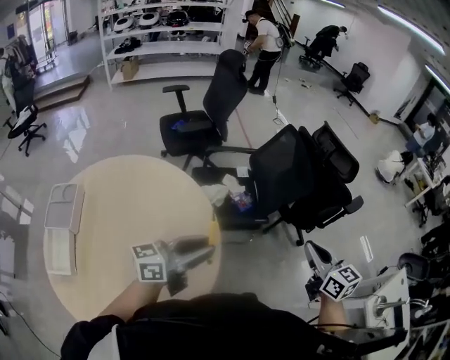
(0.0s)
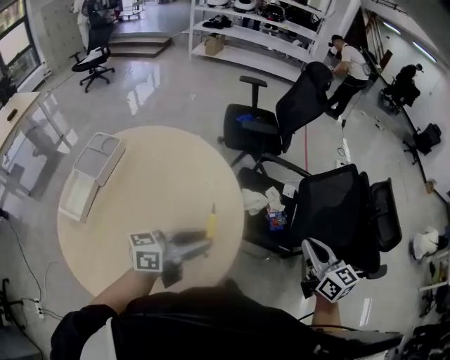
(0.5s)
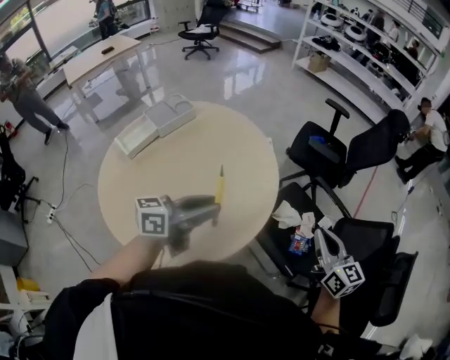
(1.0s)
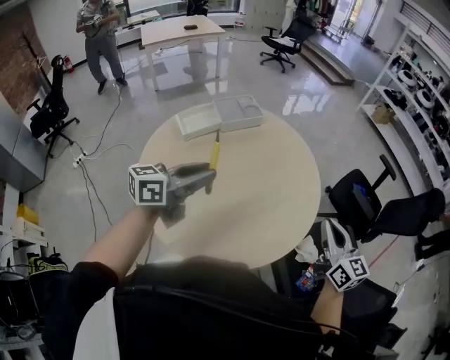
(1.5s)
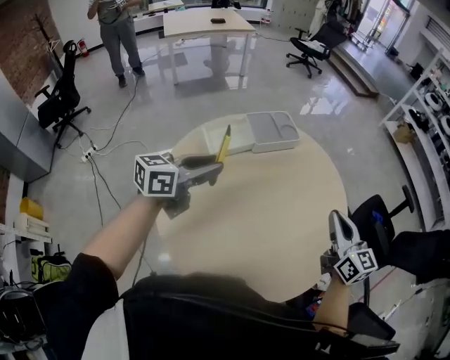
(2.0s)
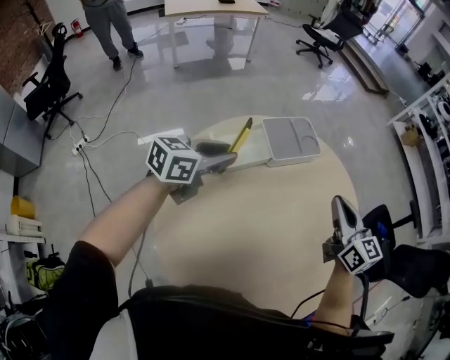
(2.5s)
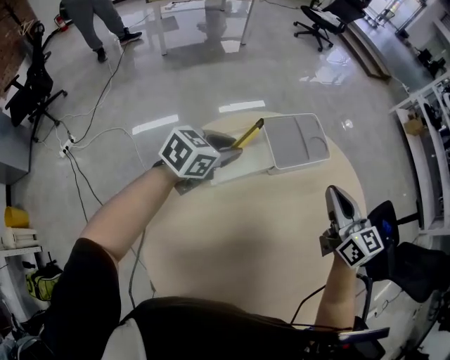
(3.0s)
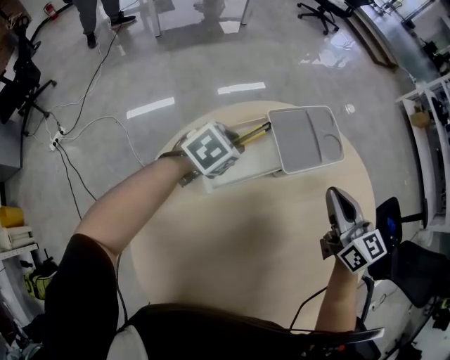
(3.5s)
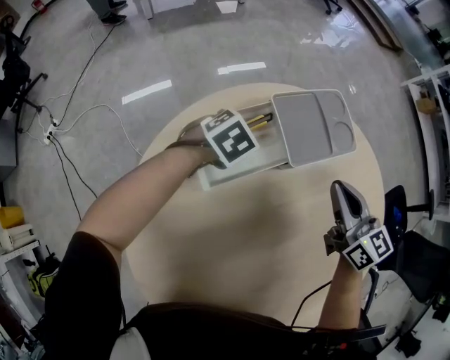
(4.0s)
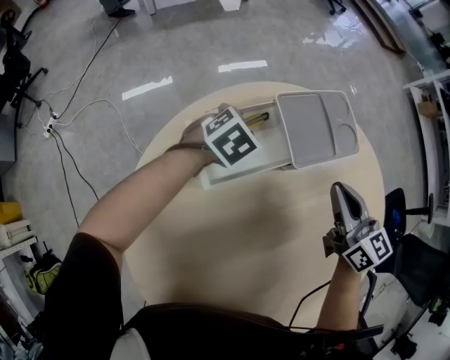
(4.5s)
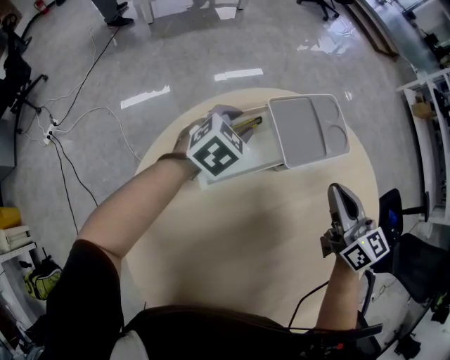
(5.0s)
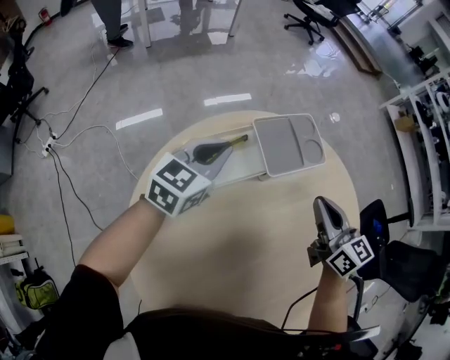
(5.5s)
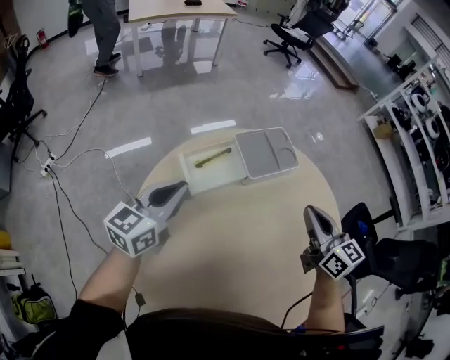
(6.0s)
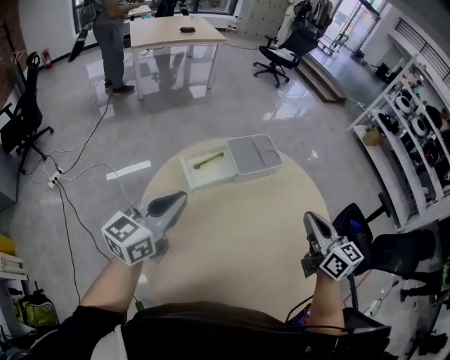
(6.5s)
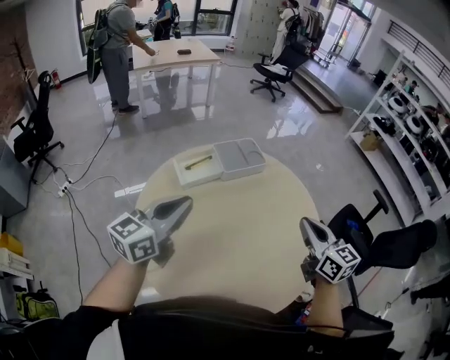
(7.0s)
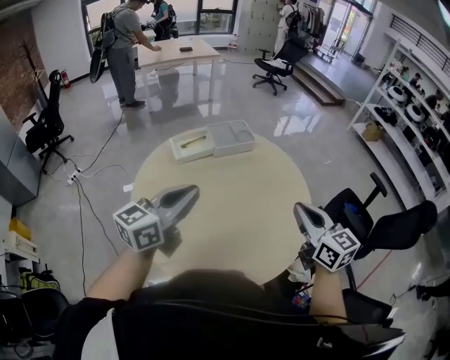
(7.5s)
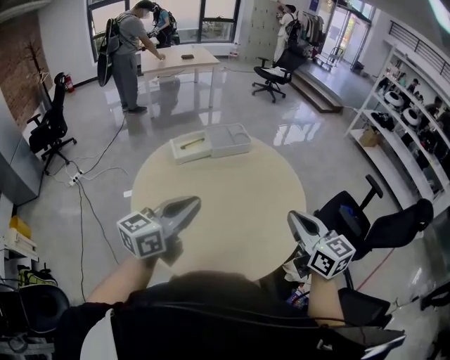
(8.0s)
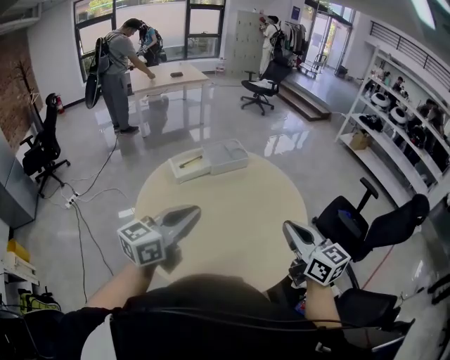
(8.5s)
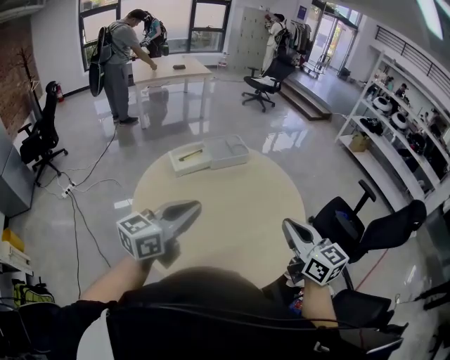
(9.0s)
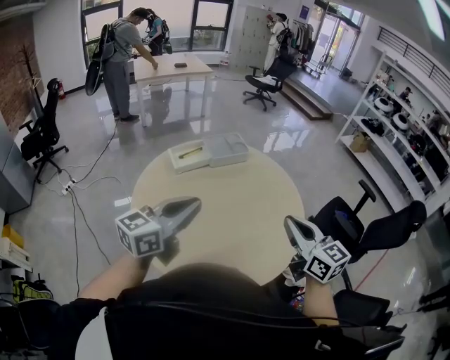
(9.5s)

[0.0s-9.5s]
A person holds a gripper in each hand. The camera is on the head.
0.0s to 2.0s: The two grippers travel together, about 50 cm. The right gripper rotates roughly 80 degrees. Meanwhile the left gripper changes its angle by approximately 90 degrees.
2.0s to 4.0s: The right gripper heads forward, downward and to the left, covering about 40 cm; the left gripper travels downward and forward by some 50 cm, and points its fingers some 50 degrees further downward.
4.0s to 5.5s: The right gripper heads upward, covering about 5 cm. Meanwhile the left gripper shifts approximately 20 cm upward, points its fingers roughly 40 degrees further upward, and closes.
5.5s to 7.5s: The two grippers travel together, backward and to the right, some 50 cm. The two grippers go some 25 cm upward. The left gripper swivels roughly 20 degrees.
7.5s to 9.5s: The grippers both shift backward by approximately 5 cm.

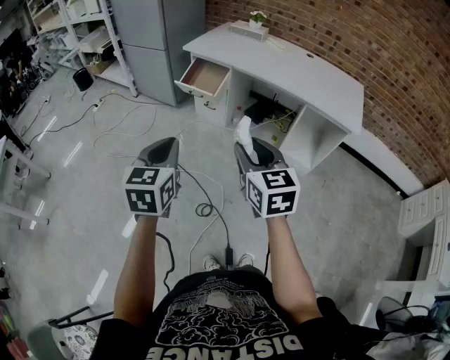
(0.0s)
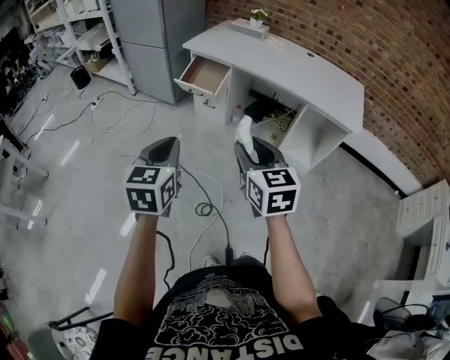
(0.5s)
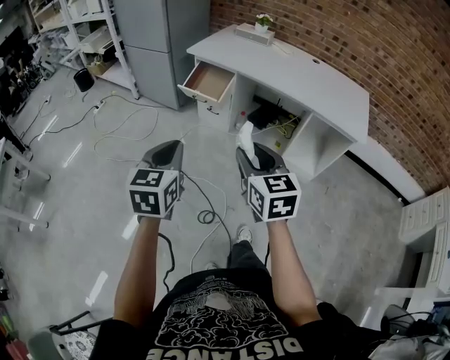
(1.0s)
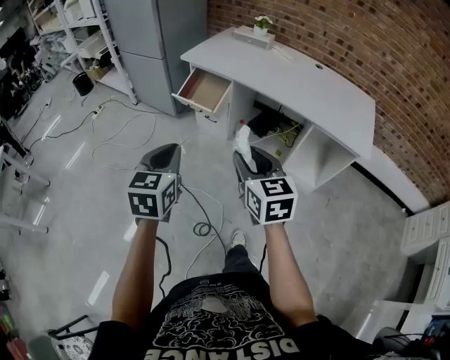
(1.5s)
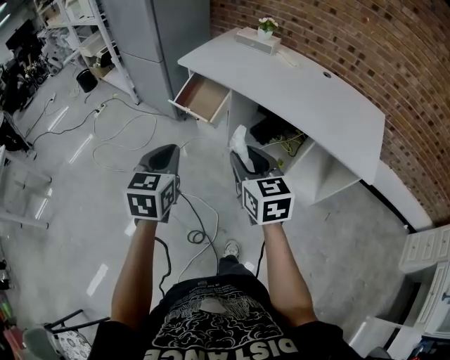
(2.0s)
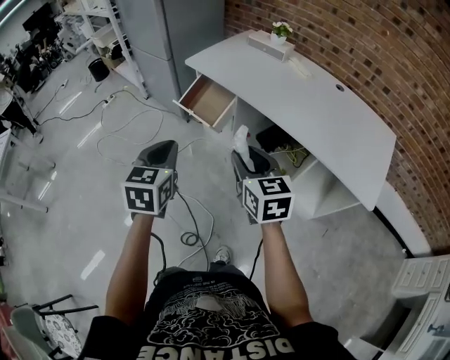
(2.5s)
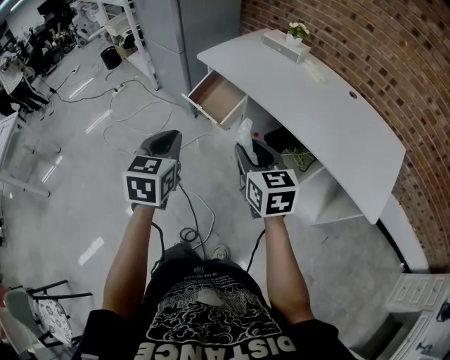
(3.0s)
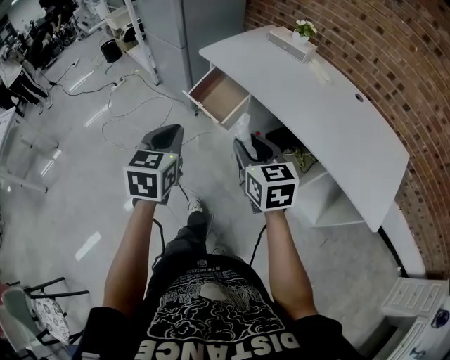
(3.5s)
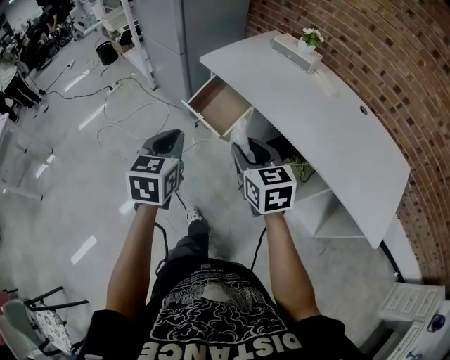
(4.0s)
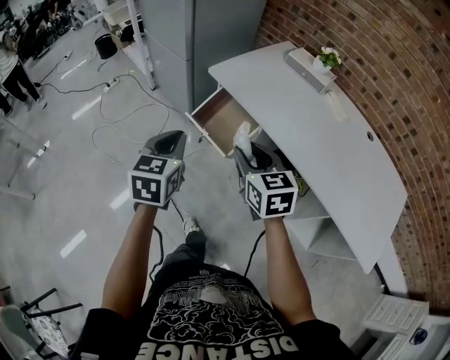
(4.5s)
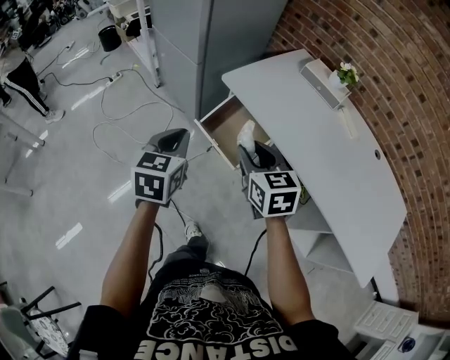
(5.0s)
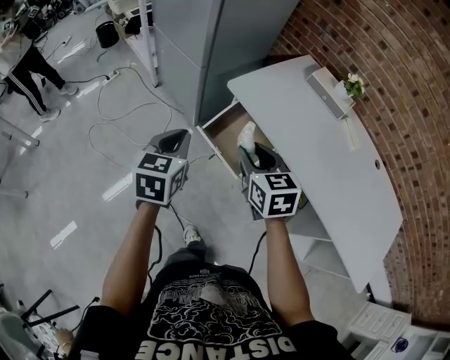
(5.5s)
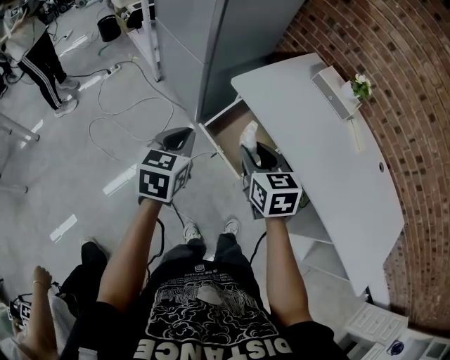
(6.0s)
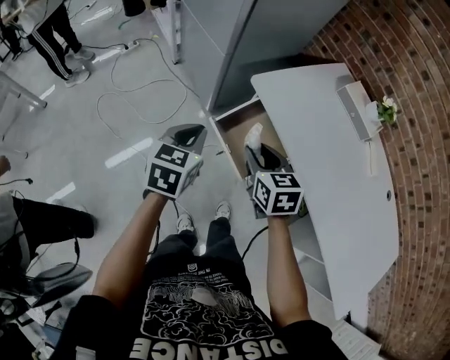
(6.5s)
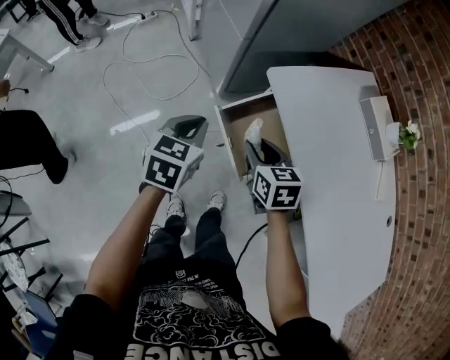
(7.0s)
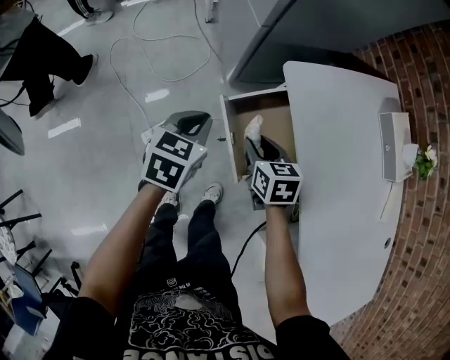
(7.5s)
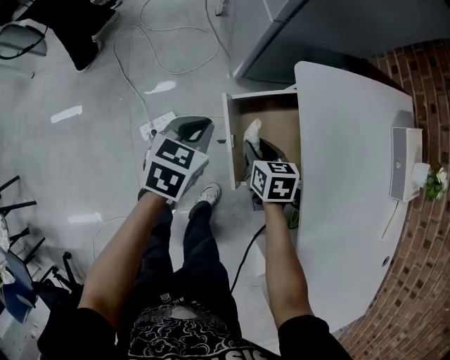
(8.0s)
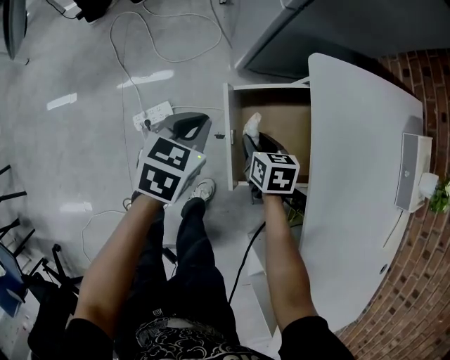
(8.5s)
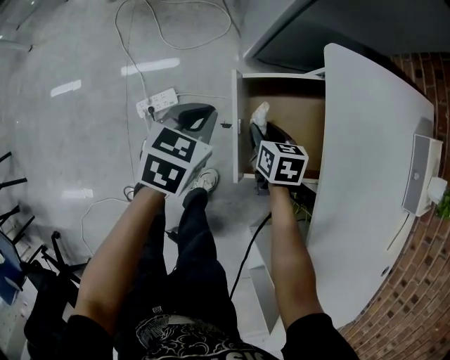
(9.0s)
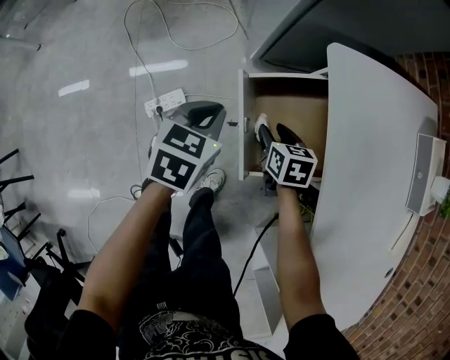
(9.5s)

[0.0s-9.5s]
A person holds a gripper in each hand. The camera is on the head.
0.0s to 2.0s: Both grippers travel together forward, approximately 20 cm.
2.0s to 4.0s: Both grippers move forward, about 15 cm.
4.0s to 5.5s: Both grippers travel together forward and to the left, approximately 25 cm.
5.5s to 7.5s: The left gripper is displaced downward by some 15 cm. Meanwhile the right gripper shifts some 25 cm downward and forward, and rotates about 30 degrees.
7.5s to 9.5s: The left gripper moves downward, approximately 10 cm. The right gripper moves downward, roughly 15 cm.

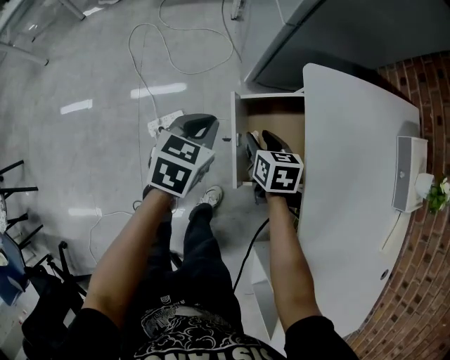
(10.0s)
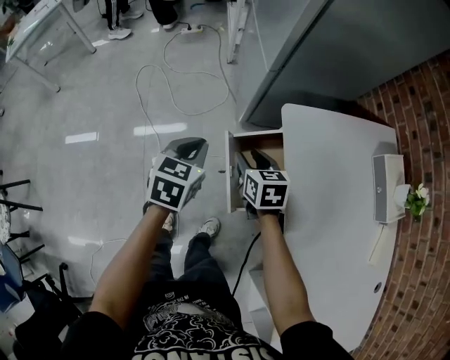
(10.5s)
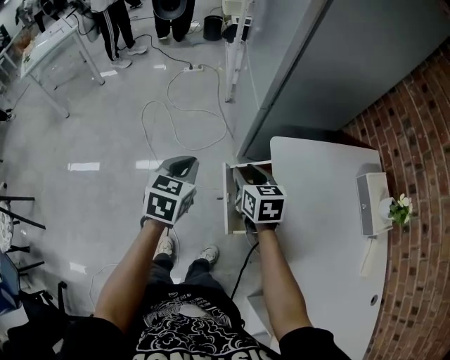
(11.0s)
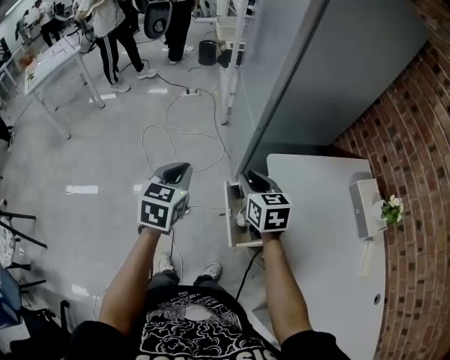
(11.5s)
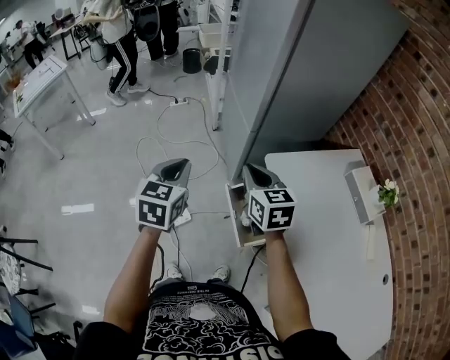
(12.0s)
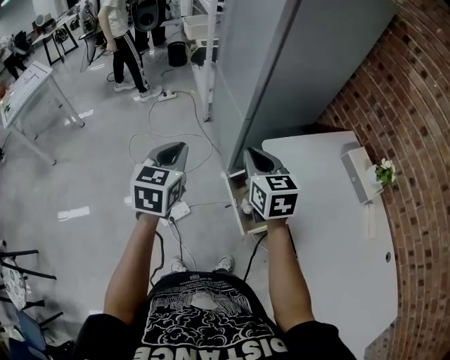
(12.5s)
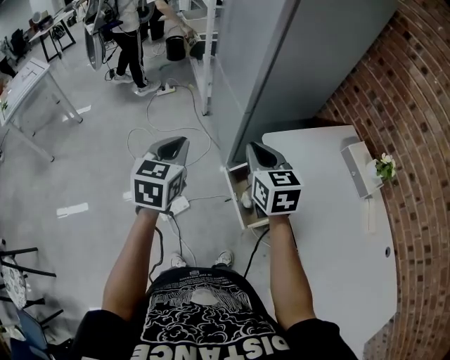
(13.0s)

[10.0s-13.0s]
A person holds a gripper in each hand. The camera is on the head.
10.0s to 11.5s: The left gripper heads upward and to the left, covering approximately 20 cm. The right gripper is displaced upward by approximately 25 cm, turns by approximately 20 degrees, and closes its fingers.
11.5s to 13.0s: The grippers both shift upward by roughly 10 cm. The right gripper closes its fingers.

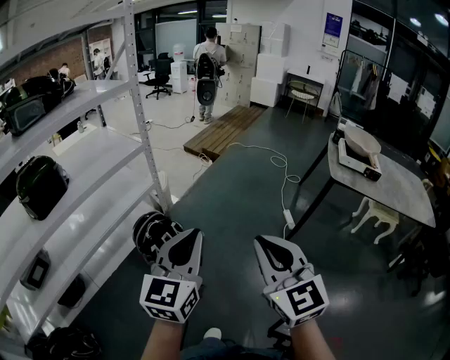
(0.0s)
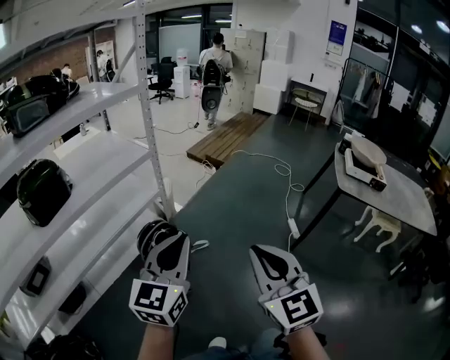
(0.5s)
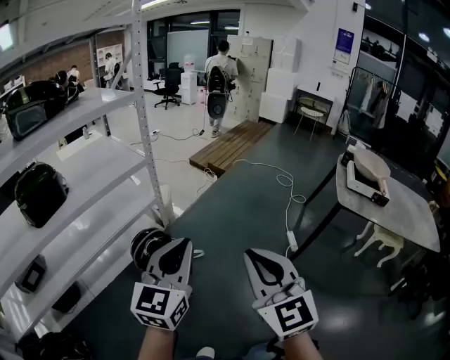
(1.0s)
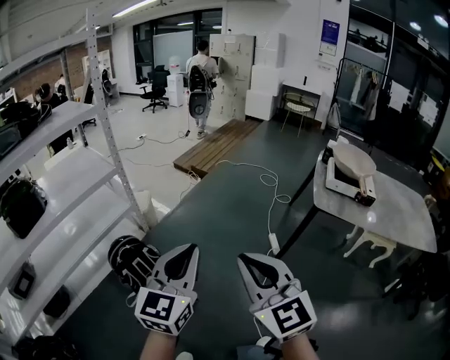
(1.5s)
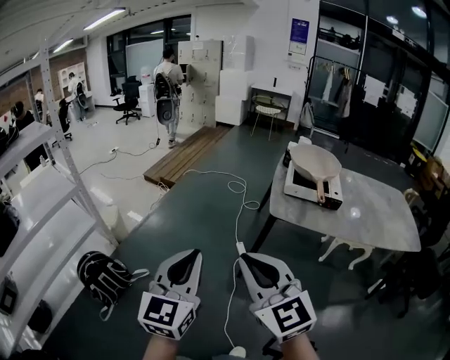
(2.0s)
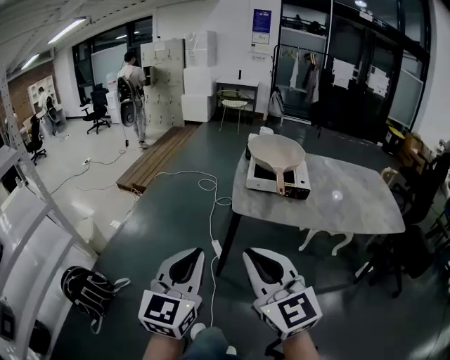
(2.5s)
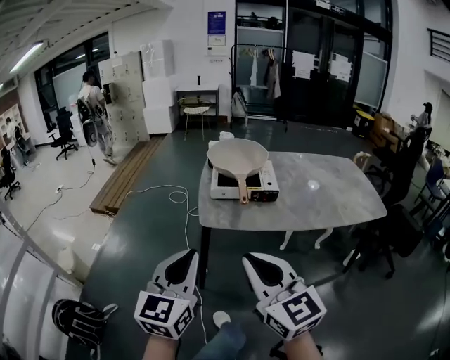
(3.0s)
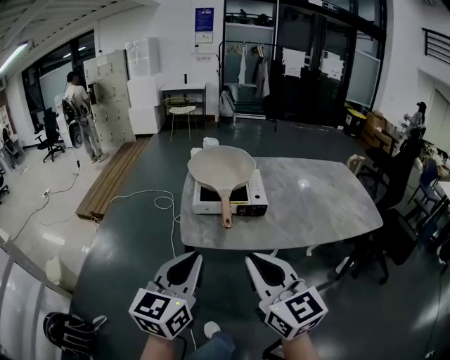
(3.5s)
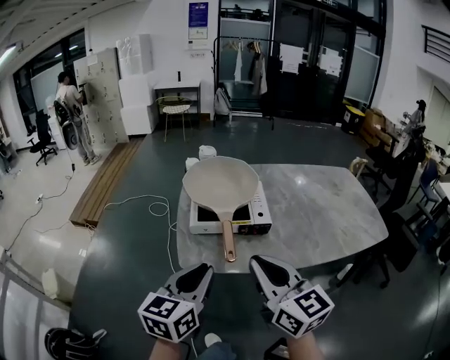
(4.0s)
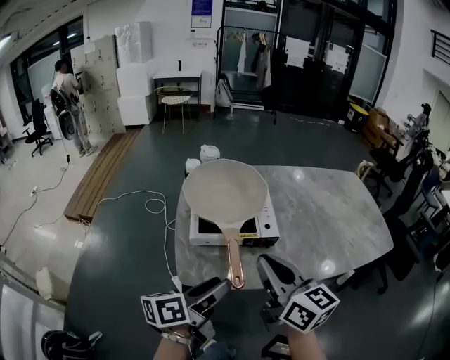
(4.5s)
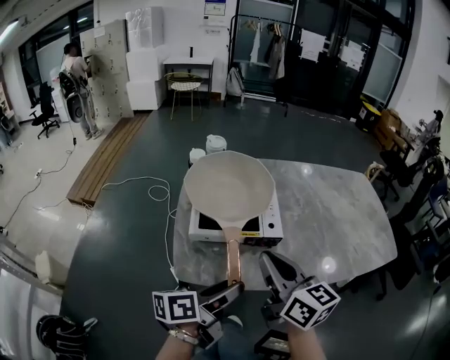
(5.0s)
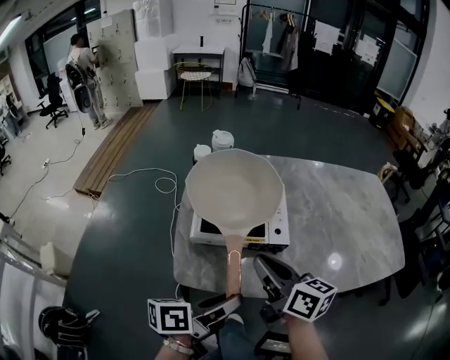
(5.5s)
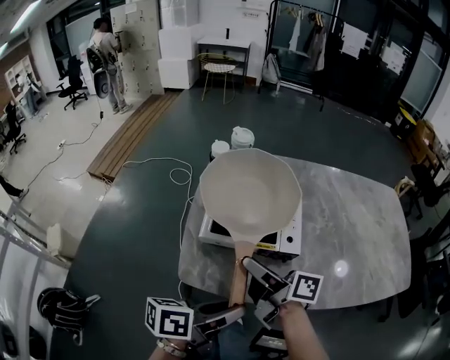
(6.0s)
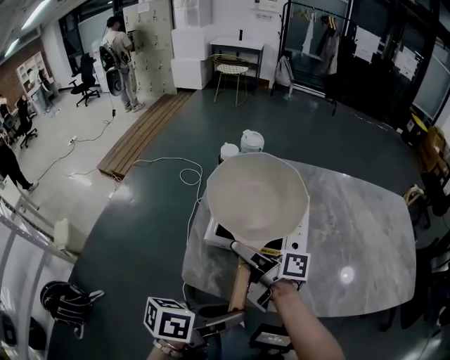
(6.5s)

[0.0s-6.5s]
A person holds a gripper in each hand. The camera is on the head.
0.0s to 2.0s: The grippers both shift to the right by roughly 35 cm.
2.0s to 4.5s: The pair of grippers is taken approximately 40 cm. The right gripper turns by roughly 50 degrees. The left gripper swivels roughly 80 degrees, and opens its fingers.
4.5s to 6.5s: The right gripper is displaced downward, forward and to the left by some 20 cm, rolls clockwise, seen from behind, by approximately 50 degrees, and opens up, while the left gripper moves to the right, approximately 5 cm.
